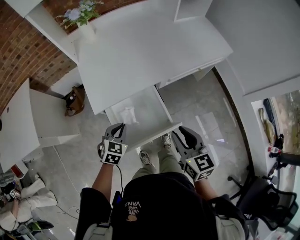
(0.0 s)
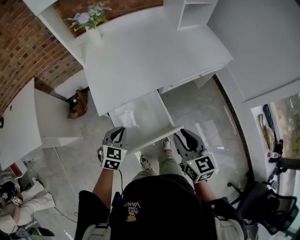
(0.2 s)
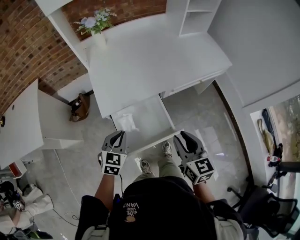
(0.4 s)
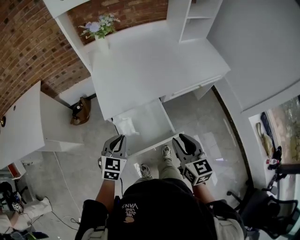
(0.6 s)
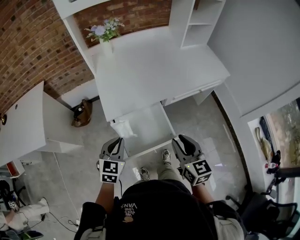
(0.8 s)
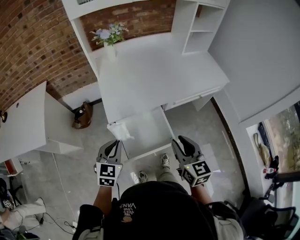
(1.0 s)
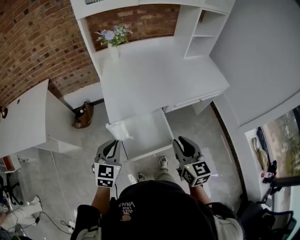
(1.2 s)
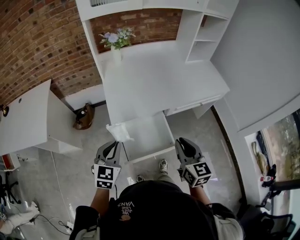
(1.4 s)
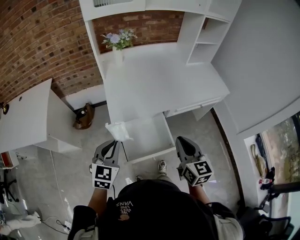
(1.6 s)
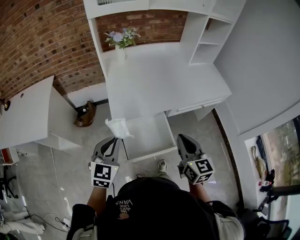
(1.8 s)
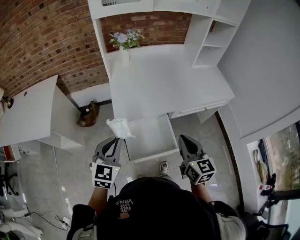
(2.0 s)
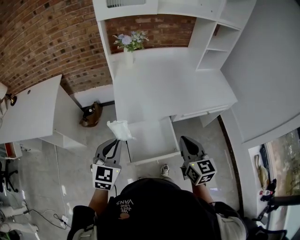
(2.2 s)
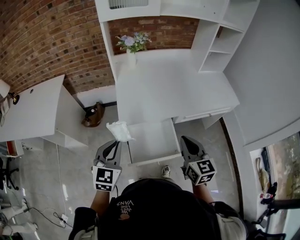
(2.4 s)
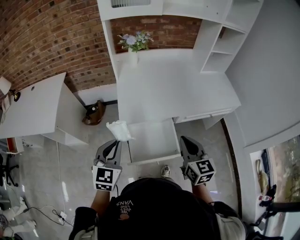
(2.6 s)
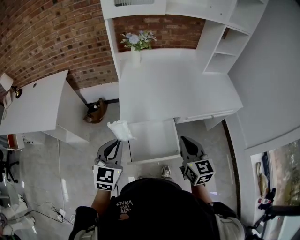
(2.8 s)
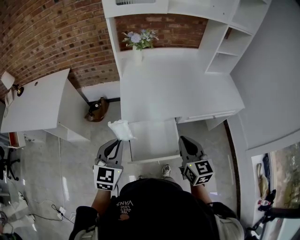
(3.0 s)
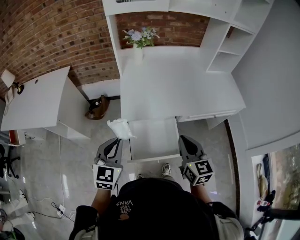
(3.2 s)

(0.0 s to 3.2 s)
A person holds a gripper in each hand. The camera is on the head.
0.0 s - 1.6 s: The left gripper shifts some 25 cm upward, to the left and backward, and rotates some 30 degrees, while the right gripper is displaced upward by roughly 10 cm, and closes up.
1.6 s - 3.2 s: The grippers move only a little.

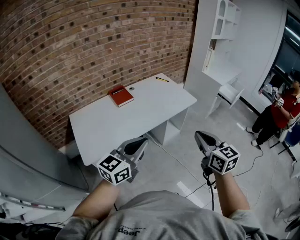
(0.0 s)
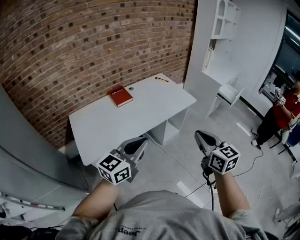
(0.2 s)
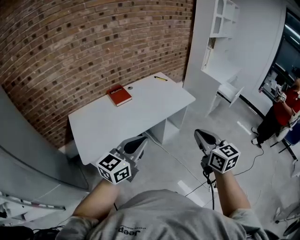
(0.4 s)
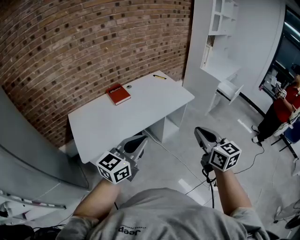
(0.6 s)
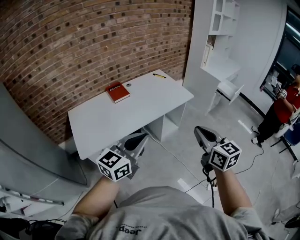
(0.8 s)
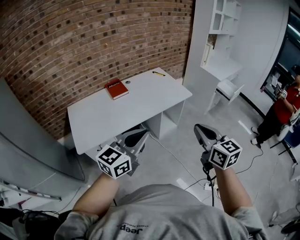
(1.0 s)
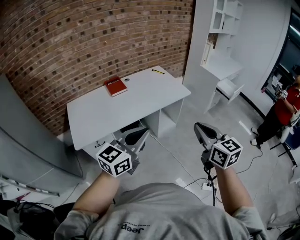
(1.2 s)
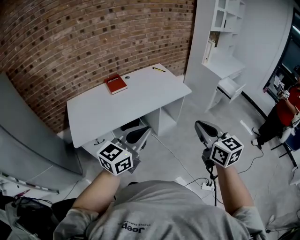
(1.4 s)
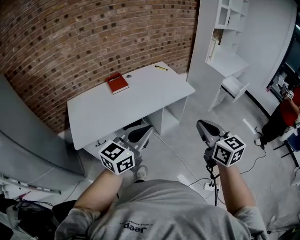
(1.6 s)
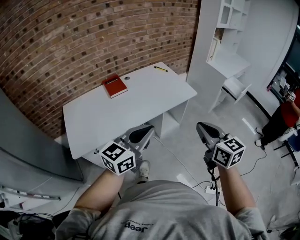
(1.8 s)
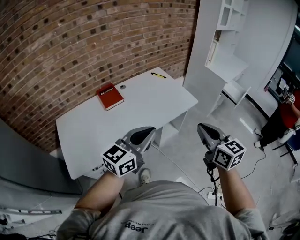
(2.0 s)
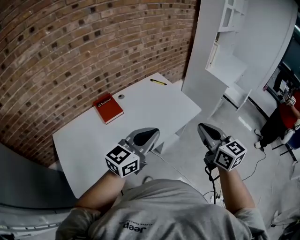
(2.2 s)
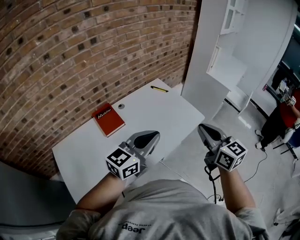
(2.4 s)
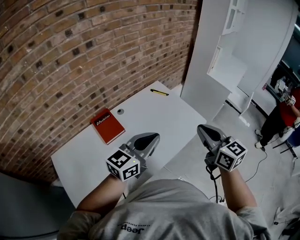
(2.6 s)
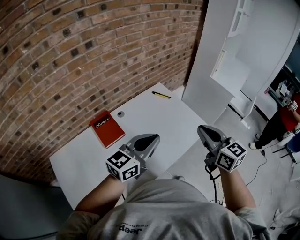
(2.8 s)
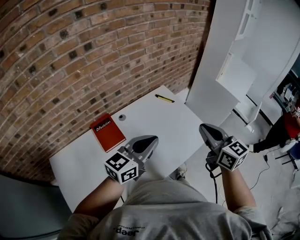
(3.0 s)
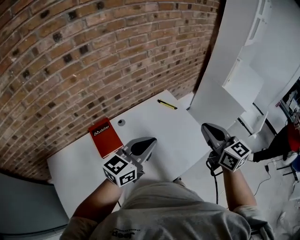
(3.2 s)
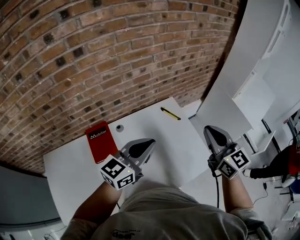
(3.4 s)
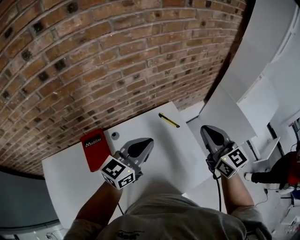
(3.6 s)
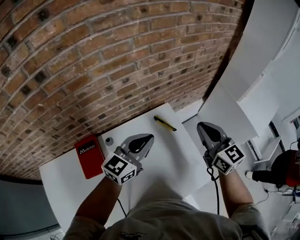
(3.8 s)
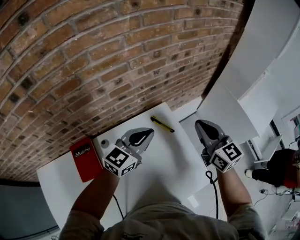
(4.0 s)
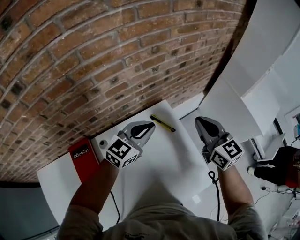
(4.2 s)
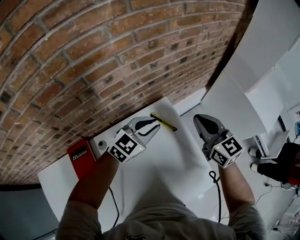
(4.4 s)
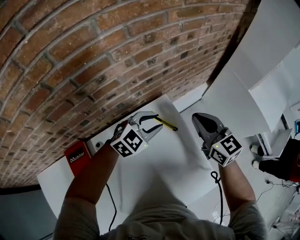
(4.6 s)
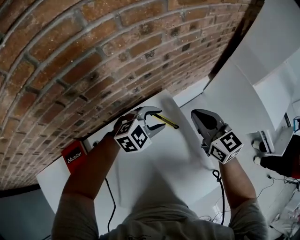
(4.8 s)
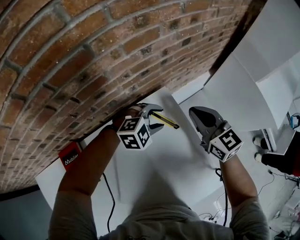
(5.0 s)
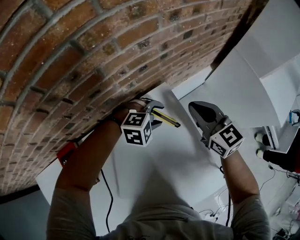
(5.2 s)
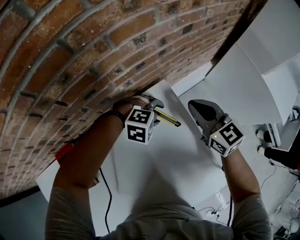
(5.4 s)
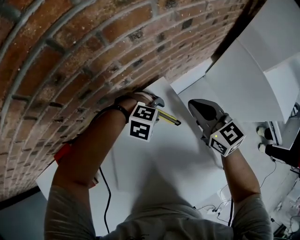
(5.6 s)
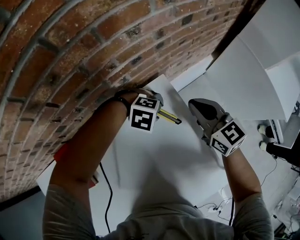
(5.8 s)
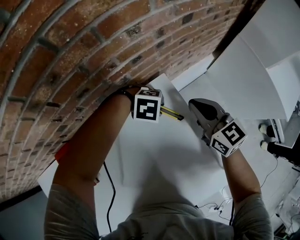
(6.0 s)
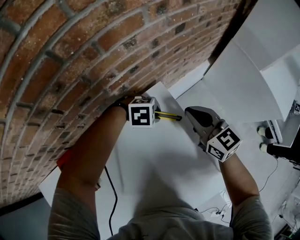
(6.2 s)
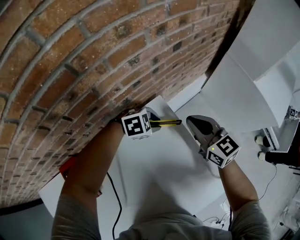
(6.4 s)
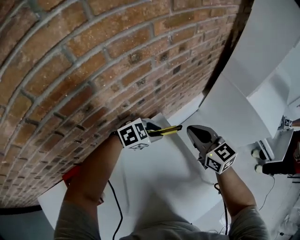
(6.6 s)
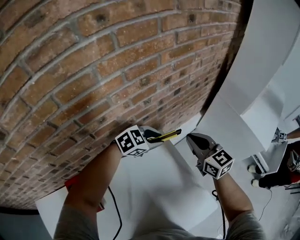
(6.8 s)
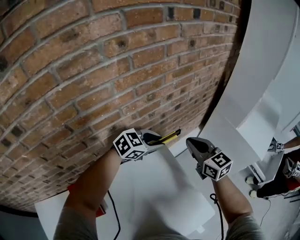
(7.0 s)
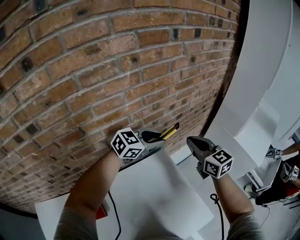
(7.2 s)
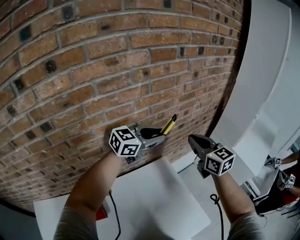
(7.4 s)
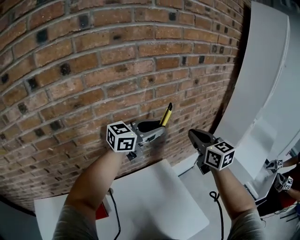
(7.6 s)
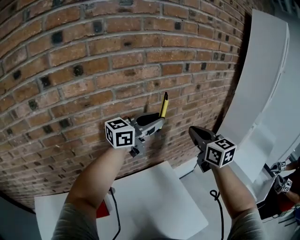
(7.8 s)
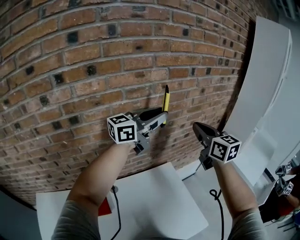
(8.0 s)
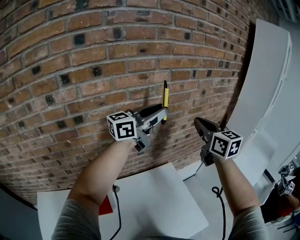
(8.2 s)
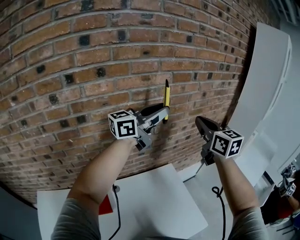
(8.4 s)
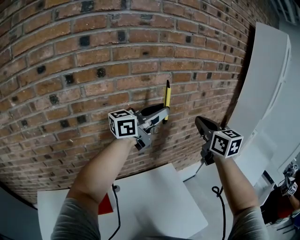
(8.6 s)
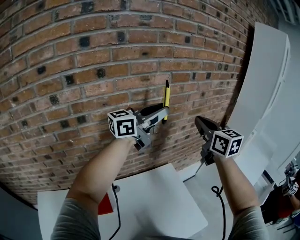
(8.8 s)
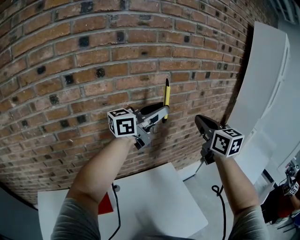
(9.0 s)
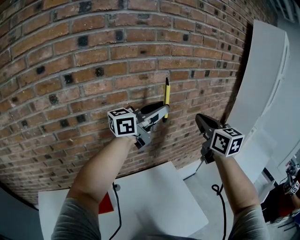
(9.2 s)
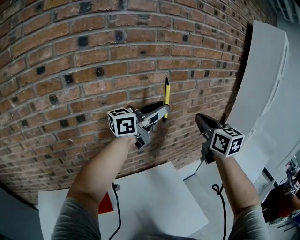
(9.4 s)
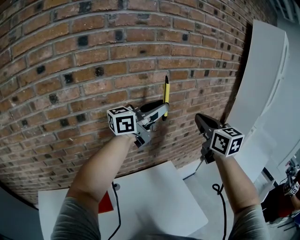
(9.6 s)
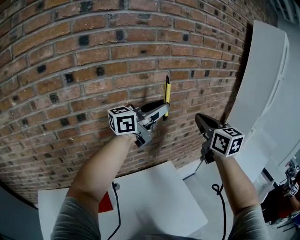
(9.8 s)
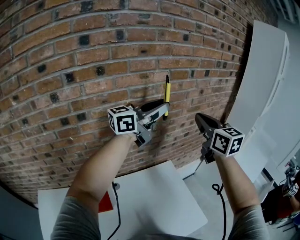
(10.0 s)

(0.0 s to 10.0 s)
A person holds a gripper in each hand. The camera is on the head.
0.0 s - 1.4 s: The grippers both shift to the right by some 15 cm.
1.4 s - 2.8 s: The two grippers travel together, forward and to the left, some 50 cm.
2.8 s - 4.2 s: The two grippers travel together, forward, some 50 cm. The left gripper swivels approximately 20 degrees.
4.2 s - 5.8 s: The two grippers go some 25 cm downward. The left gripper tilts its fingers roughly 60 degrees downward, and opens its fingers.
5.8 s - 7.2 s: Both grippers move upward, roughly 30 cm. The left gripper points its fingers roughly 50 degrees further upward, and closes up.
7.2 s - 8.6 s: Both grippers move upward, approximately 25 cm. The left gripper tilts its fingers some 40 degrees upward.
8.6 s - 10.0 s: There are only small adjustments of the grippers.

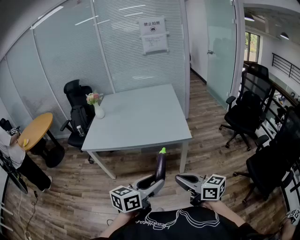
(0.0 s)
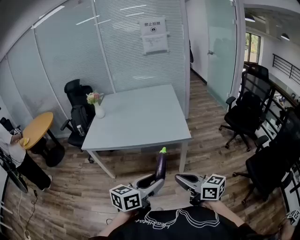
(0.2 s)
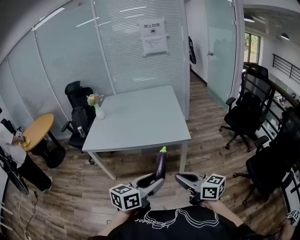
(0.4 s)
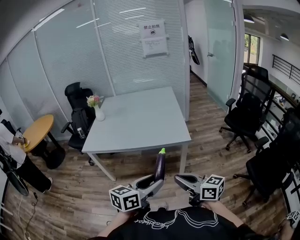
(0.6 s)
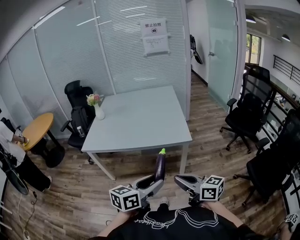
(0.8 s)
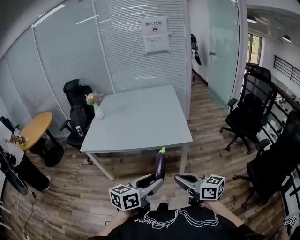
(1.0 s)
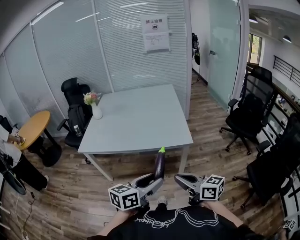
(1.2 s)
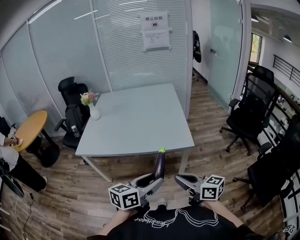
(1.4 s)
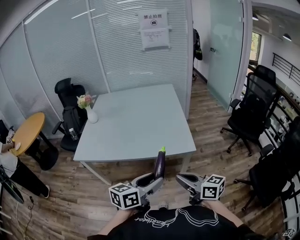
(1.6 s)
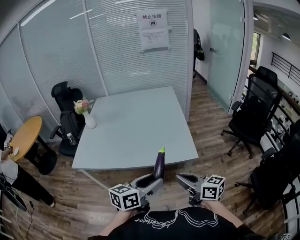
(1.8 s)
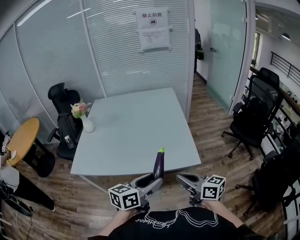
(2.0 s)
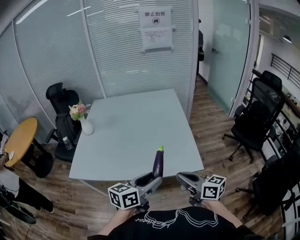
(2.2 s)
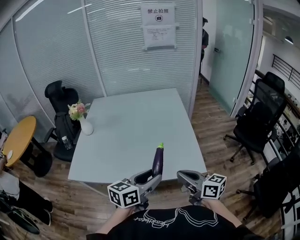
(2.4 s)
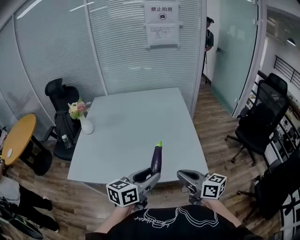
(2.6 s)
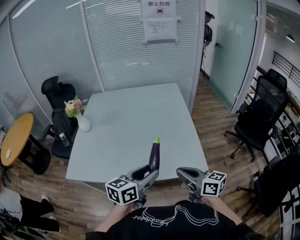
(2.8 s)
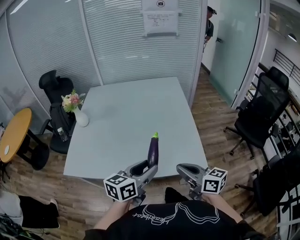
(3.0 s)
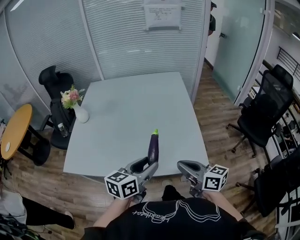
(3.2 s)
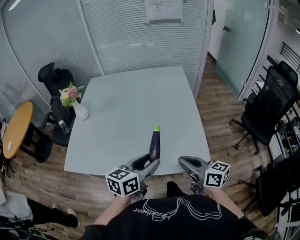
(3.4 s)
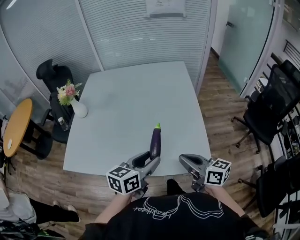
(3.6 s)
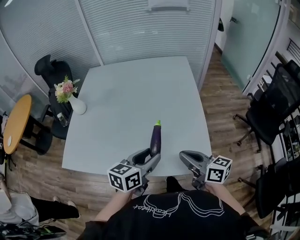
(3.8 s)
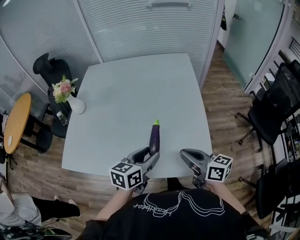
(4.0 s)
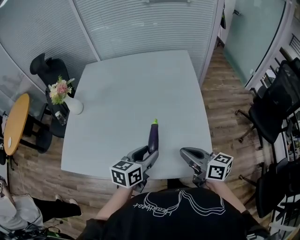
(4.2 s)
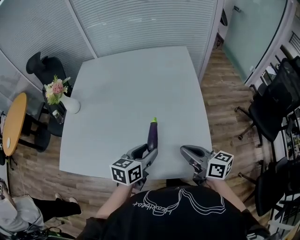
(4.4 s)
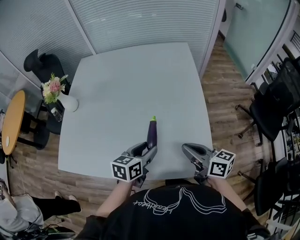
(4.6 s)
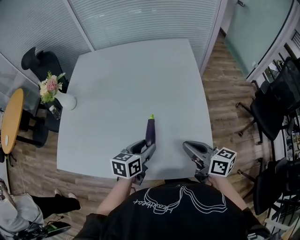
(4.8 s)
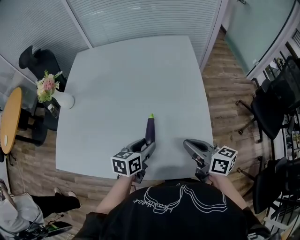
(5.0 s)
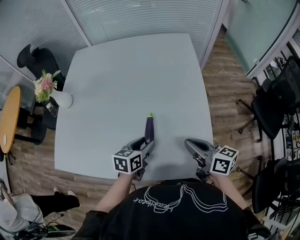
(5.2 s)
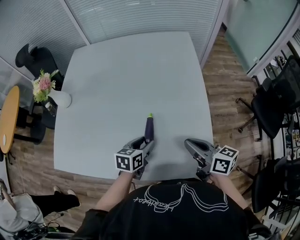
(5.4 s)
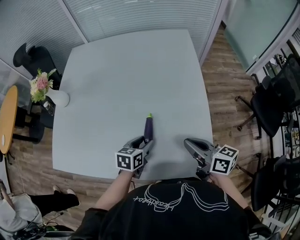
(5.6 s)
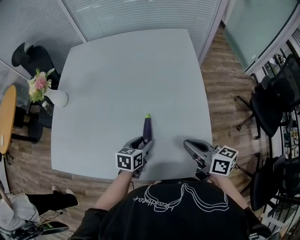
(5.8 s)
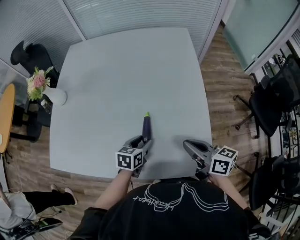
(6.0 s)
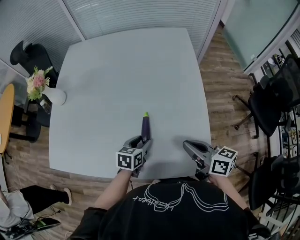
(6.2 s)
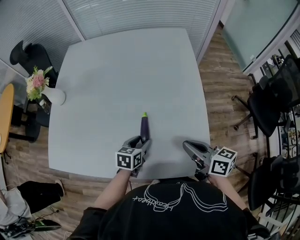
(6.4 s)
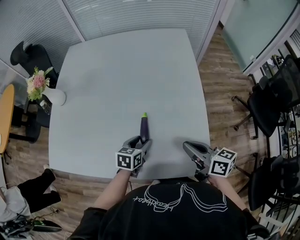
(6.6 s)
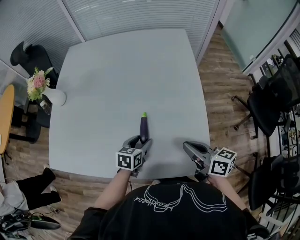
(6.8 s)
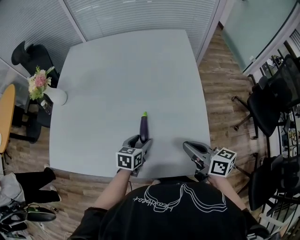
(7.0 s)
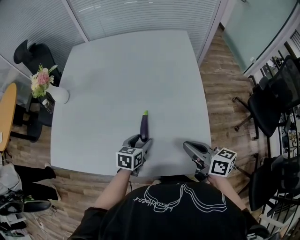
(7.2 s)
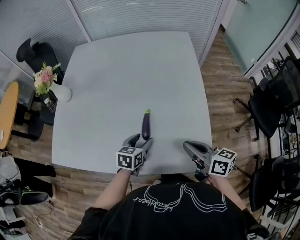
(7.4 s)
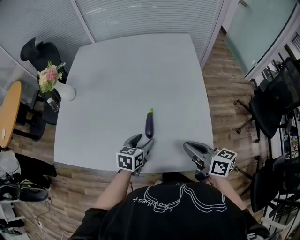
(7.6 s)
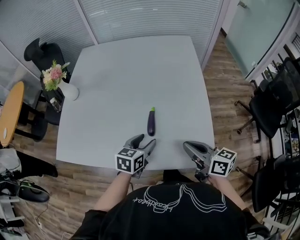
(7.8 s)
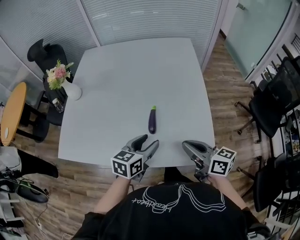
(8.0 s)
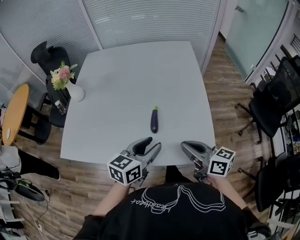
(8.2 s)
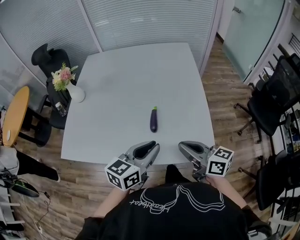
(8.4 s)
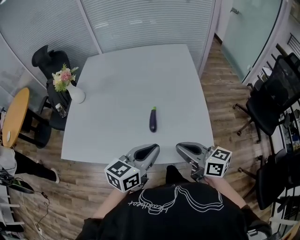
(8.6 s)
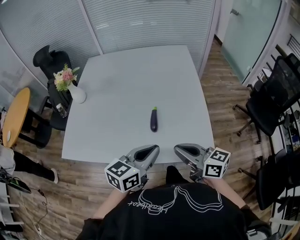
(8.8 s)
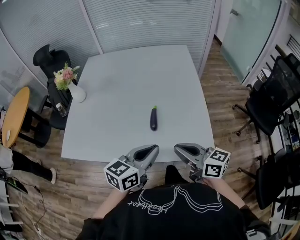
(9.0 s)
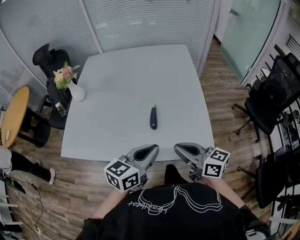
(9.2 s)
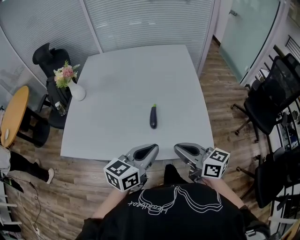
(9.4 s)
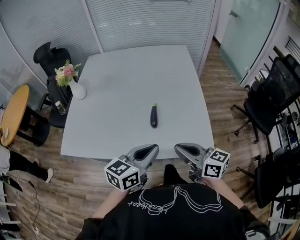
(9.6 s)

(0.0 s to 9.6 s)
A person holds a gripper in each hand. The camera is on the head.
0.0 s - 1.6 s: Both grippers travel together forward, roughly 15 cm.
1.6 s - 3.2 s: Both grippers travel together forward, about 30 cm.
3.2 s - 4.8 s: The left gripper is displaced forward and downward by about 25 cm; the right gripper moves forward, about 20 cm.
4.8 s - 6.4 s: The left gripper travels downward by approximately 10 cm.
6.4 s - 8.0 s: The right gripper travels backward by approximately 10 cm. Meanwhile the left gripper shifts approximately 15 cm upward and backward.
8.0 s - 9.6 s: The right gripper travels backward by about 10 cm. Meanwhile the left gripper heads backward and upward, covering some 15 cm, and closes.

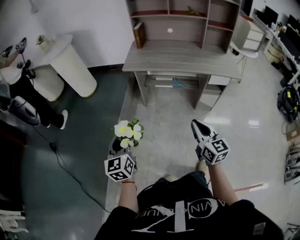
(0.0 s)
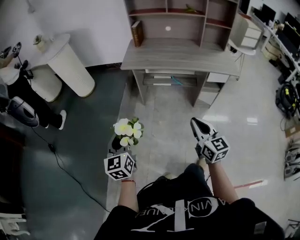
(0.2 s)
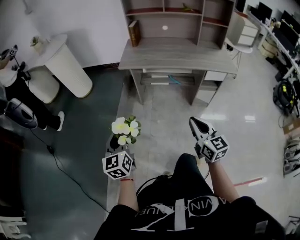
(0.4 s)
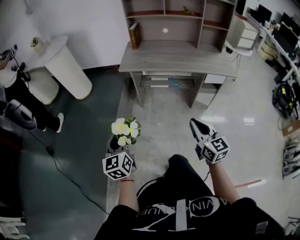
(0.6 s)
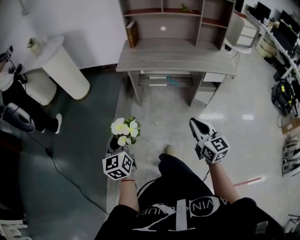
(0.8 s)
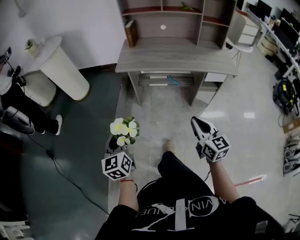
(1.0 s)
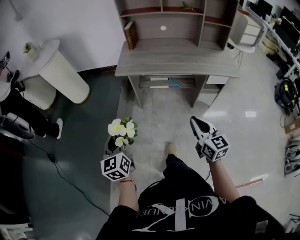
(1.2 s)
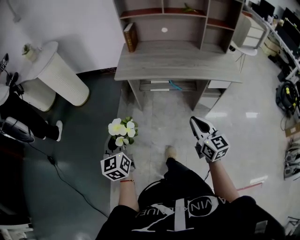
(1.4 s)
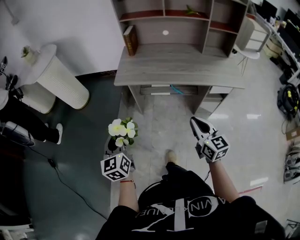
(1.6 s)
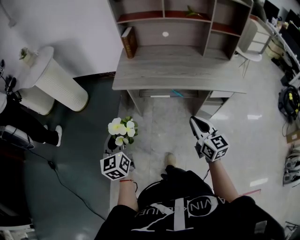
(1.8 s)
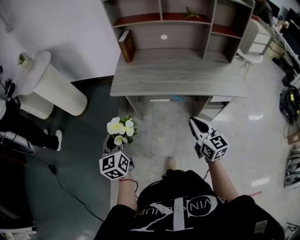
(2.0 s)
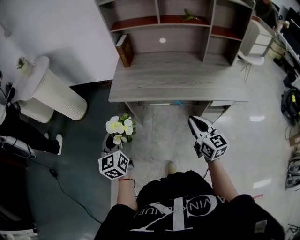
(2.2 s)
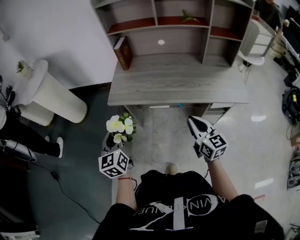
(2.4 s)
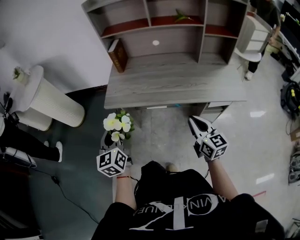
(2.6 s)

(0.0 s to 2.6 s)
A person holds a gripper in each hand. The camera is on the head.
0.0 s - 1.2 s: The grippers both shift forward by approximately 10 cm.
1.2 s - 2.6 s: Both grippers travel together forward and to the right, approximately 25 cm.
